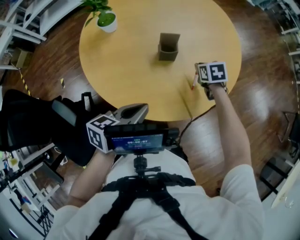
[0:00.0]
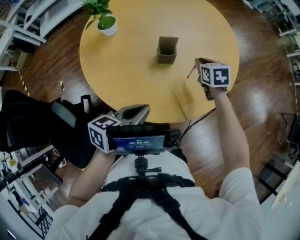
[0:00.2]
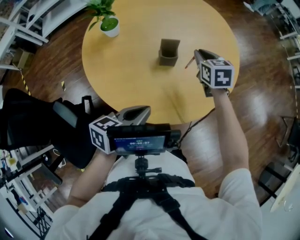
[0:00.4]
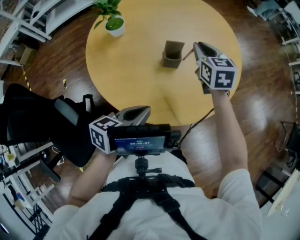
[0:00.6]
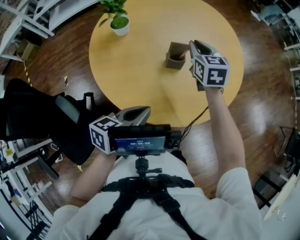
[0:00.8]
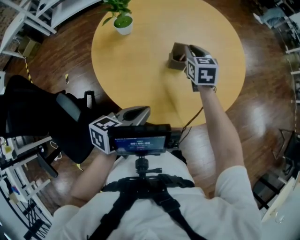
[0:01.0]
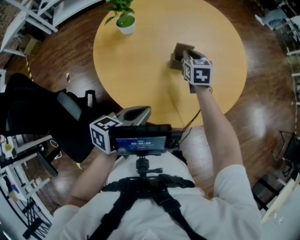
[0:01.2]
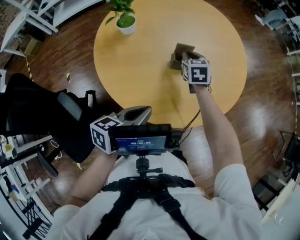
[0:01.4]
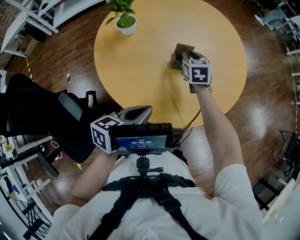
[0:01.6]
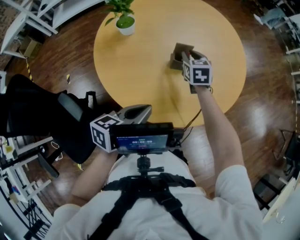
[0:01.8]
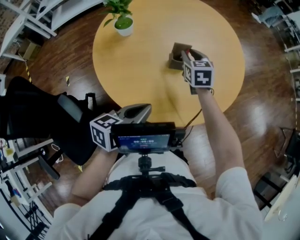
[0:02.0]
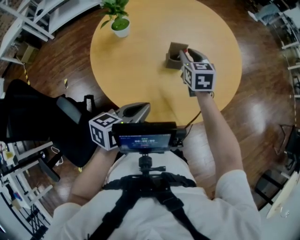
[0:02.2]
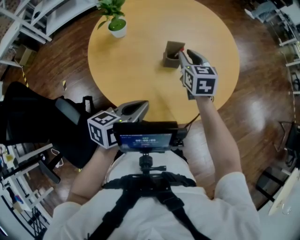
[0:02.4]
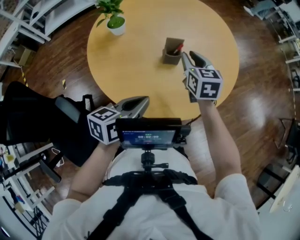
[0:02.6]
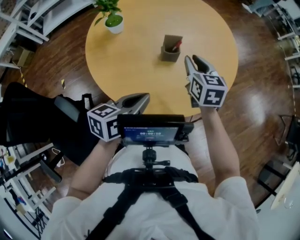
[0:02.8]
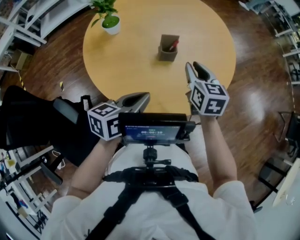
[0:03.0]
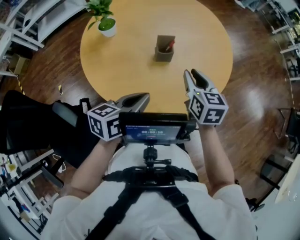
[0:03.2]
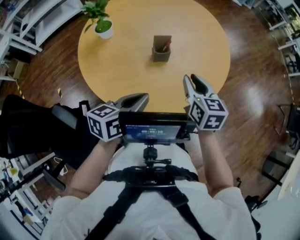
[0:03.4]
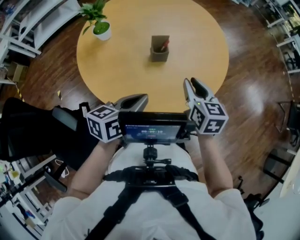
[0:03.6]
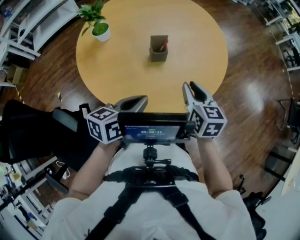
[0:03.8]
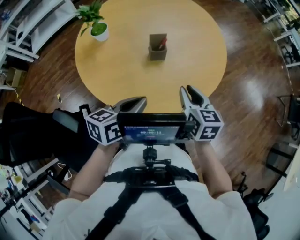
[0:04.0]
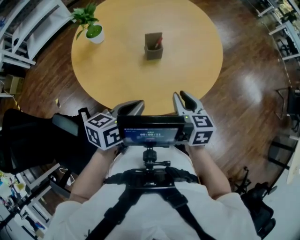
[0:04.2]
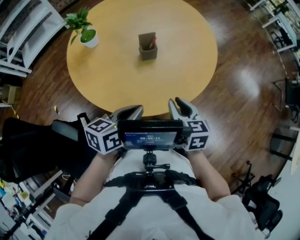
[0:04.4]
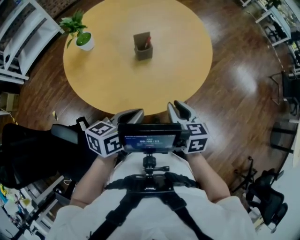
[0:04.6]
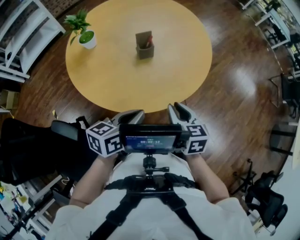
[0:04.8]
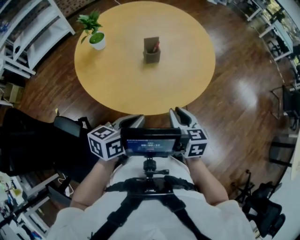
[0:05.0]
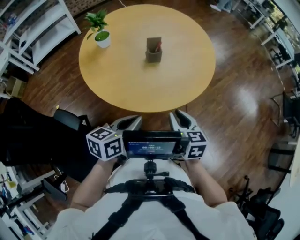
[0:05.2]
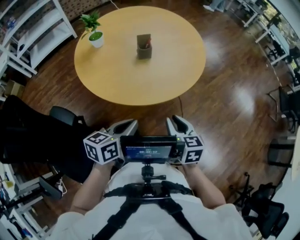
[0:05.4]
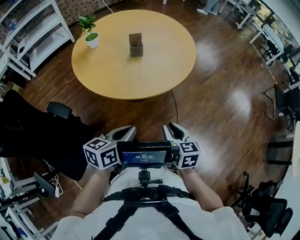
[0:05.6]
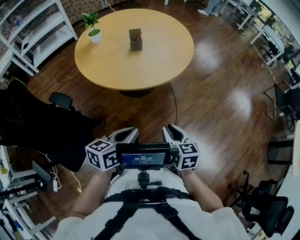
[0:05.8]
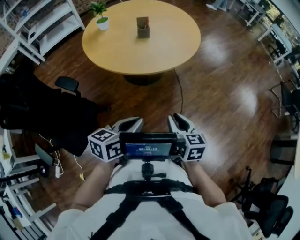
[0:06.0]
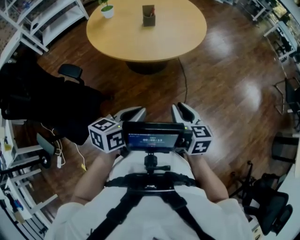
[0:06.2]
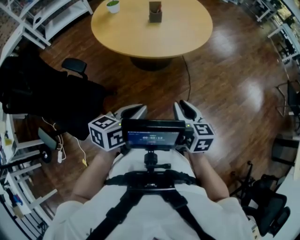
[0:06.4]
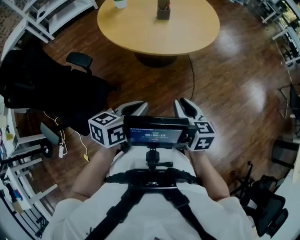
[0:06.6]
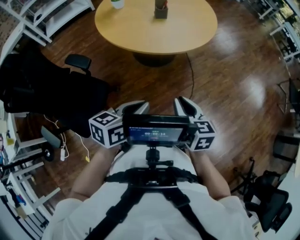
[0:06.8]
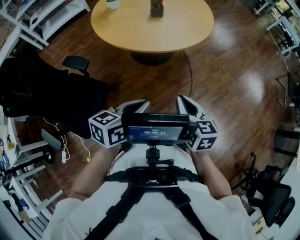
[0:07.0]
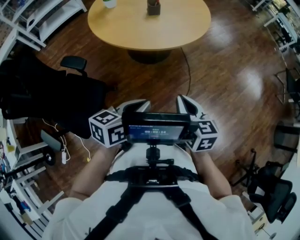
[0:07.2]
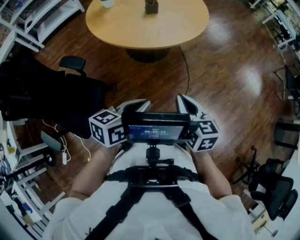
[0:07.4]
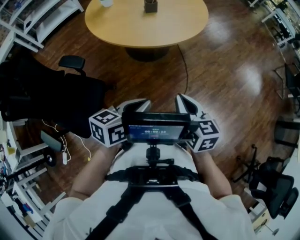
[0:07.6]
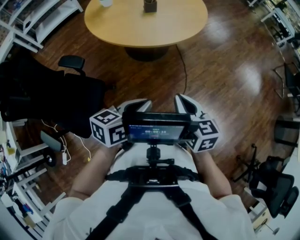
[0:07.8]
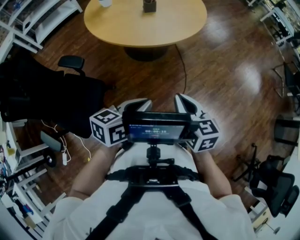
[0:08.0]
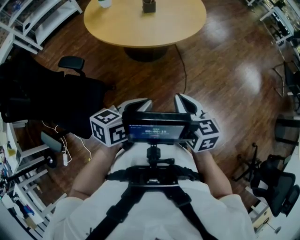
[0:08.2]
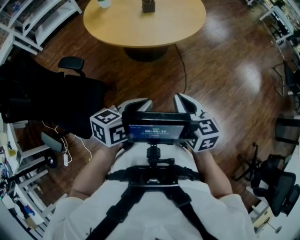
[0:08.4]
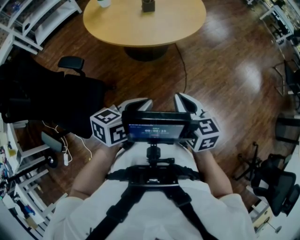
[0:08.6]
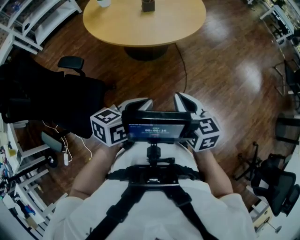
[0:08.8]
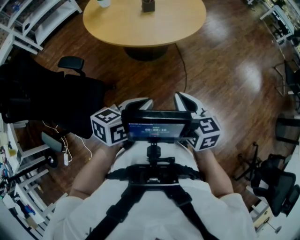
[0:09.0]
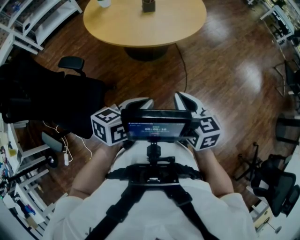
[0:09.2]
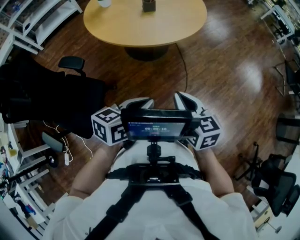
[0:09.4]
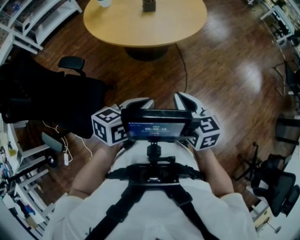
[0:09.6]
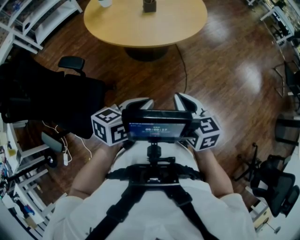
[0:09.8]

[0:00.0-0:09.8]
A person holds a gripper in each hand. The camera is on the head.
0:00.0 to 0:01.4: The right gripper travels to the left and upward by about 15 cm, and changes its angle by some 20 degrees.
0:01.4 to 0:02.8: The right gripper is displaced upward, backward and to the right by some 15 cm.
0:02.8 to 0:04.2: The right gripper travels backward by roughly 15 cm.
0:04.2 to 0:05.6: The grippers both shift backward and to the right by approximately 25 cm.
0:05.6 to 0:07.0: Both grippers travel together backward, approximately 15 cm. The right gripper closes its fingers.
0:07.0 to 0:08.4: The grippers stay close to where they were, moving slightly.
0:08.4 to 0:09.8: The two grippers keep their place.

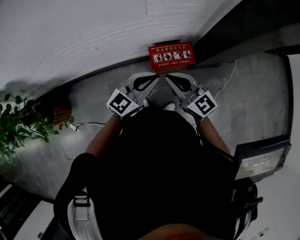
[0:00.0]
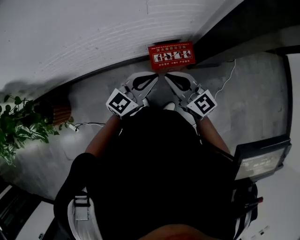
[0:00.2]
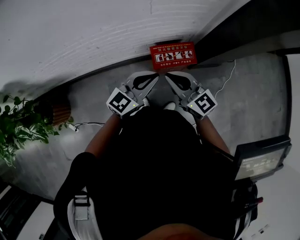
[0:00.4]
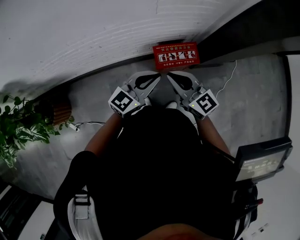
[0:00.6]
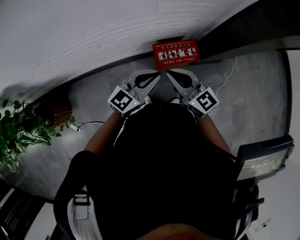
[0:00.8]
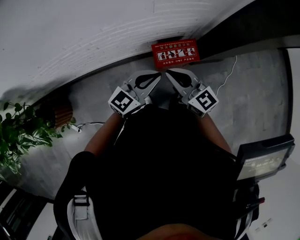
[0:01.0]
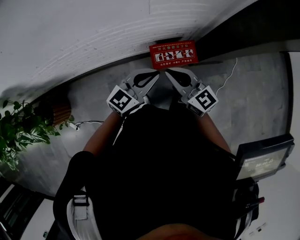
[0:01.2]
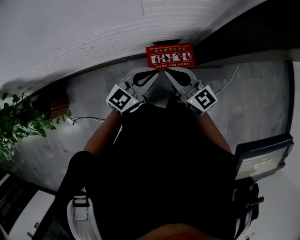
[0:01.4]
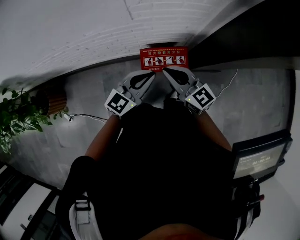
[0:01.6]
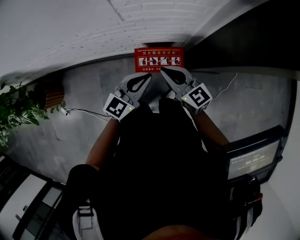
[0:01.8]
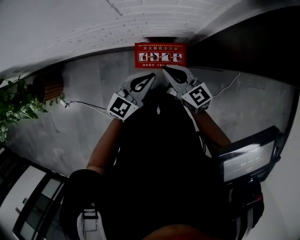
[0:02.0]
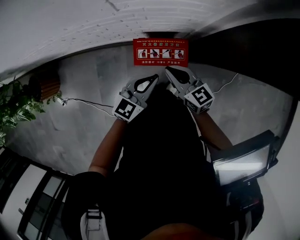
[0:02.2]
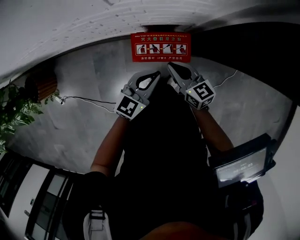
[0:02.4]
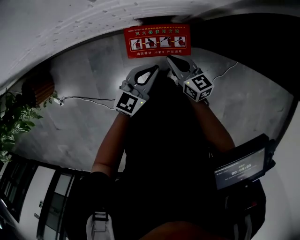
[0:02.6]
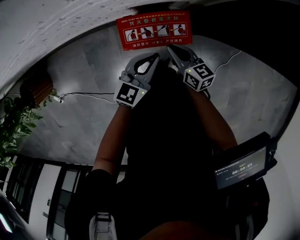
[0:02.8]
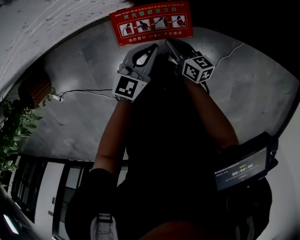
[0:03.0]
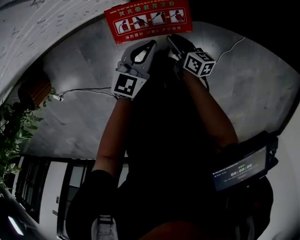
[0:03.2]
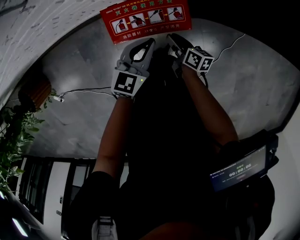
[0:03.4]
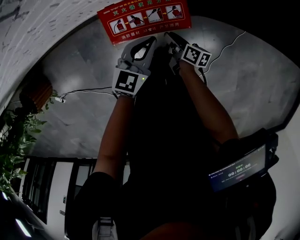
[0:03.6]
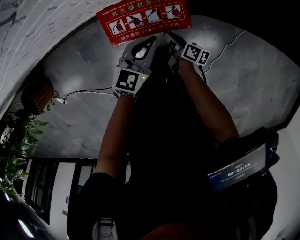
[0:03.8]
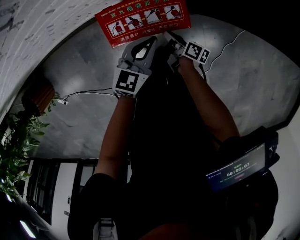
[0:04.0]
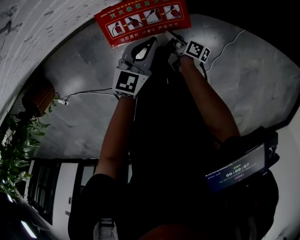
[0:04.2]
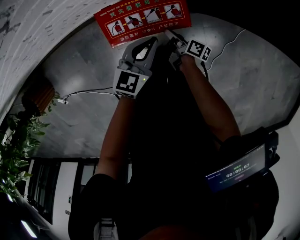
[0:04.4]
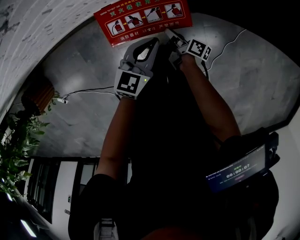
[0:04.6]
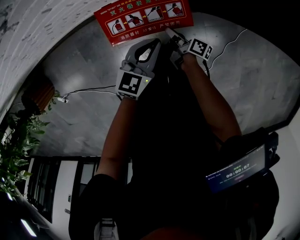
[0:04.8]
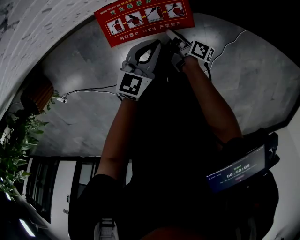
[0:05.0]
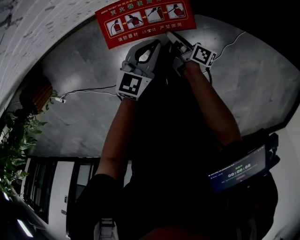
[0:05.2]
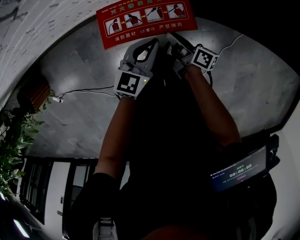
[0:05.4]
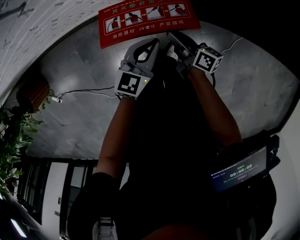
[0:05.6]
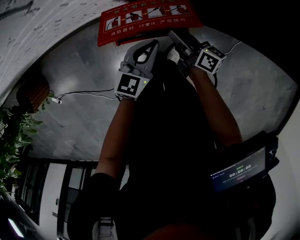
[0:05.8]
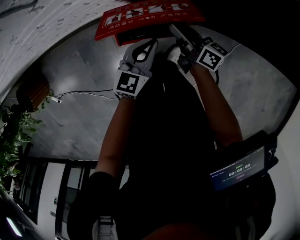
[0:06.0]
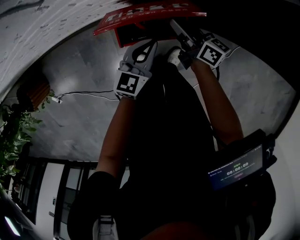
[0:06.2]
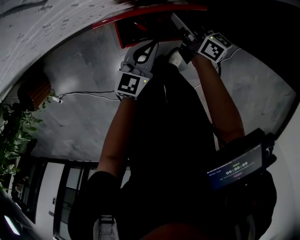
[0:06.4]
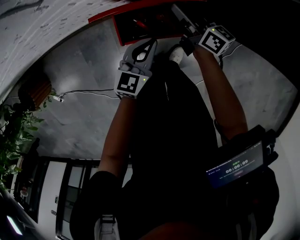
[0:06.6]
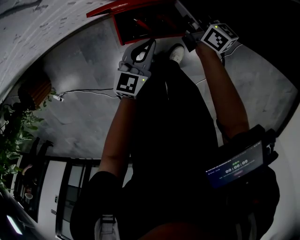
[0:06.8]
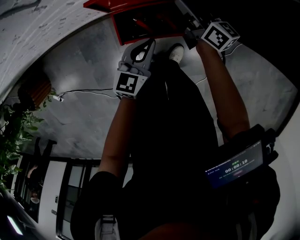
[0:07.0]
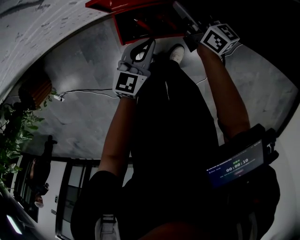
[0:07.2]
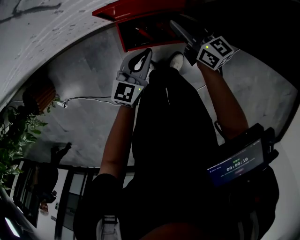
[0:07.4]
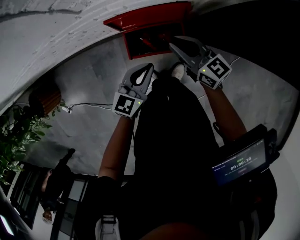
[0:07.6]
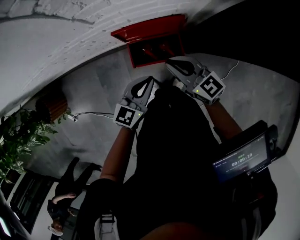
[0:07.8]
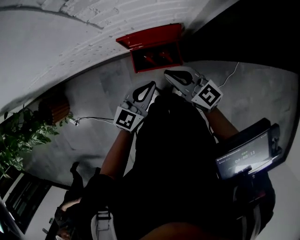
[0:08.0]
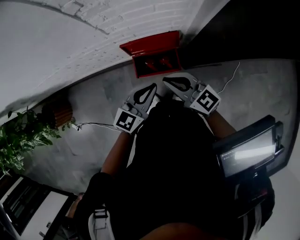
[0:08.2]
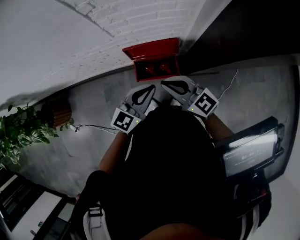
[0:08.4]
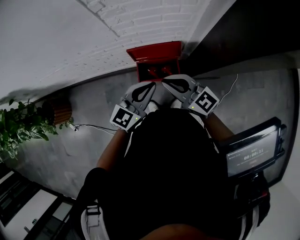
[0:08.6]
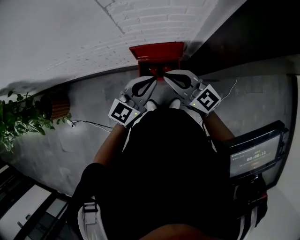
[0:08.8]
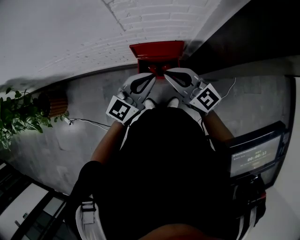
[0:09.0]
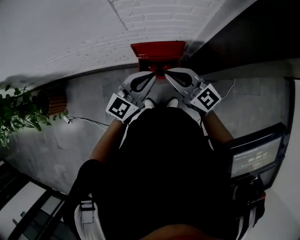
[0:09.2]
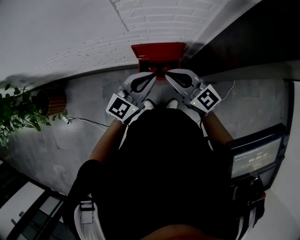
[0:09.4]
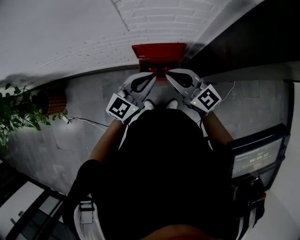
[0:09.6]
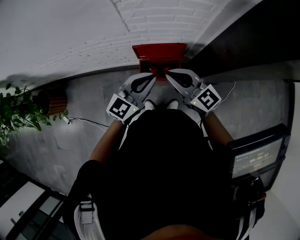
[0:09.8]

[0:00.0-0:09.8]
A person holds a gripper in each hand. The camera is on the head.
0:00.0 to 0:01.4: The two grippers go roughly 10 cm forward.
0:01.4 to 0:02.8: Both grippers move downward and to the right, approximately 35 cm. The right gripper rotates about 30 degrees.
0:02.8 to 0:04.2: The left gripper is displaced downward by some 10 cm; the right gripper is displaced downward by some 20 cm, twists roughly 50 degrees clockwise, seen from behind, and opens.
0:04.2 to 0:05.6: The right gripper travels upward by roughly 10 cm, and rotates roughly 30 degrees.
0:05.6 to 0:07.0: The right gripper travels forward and upward by some 15 cm, turns by about 20 degrees, and opens its fingers.
0:07.0 to 0:08.4: The left gripper heads upward, covering roughly 35 cm, while the right gripper shifts about 40 cm upward and backward, rotates approximately 50 degrees, and closes.
0:08.4 to 0:09.8: The left gripper moves upward, roughly 5 cm.

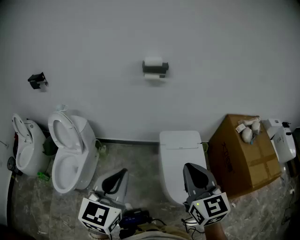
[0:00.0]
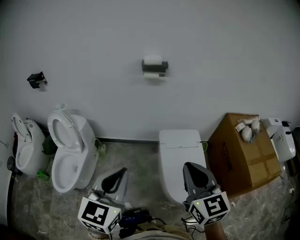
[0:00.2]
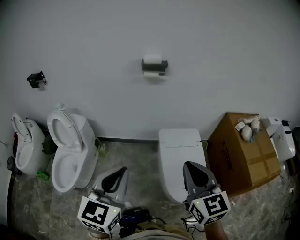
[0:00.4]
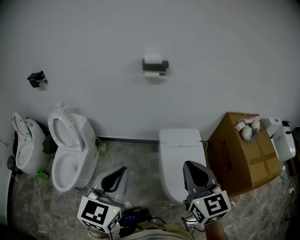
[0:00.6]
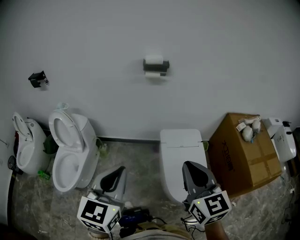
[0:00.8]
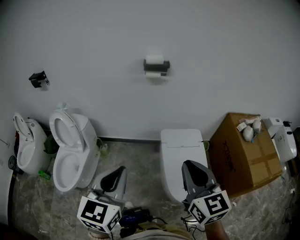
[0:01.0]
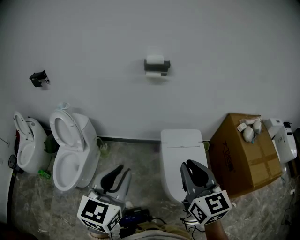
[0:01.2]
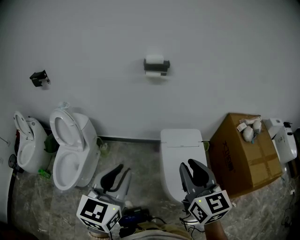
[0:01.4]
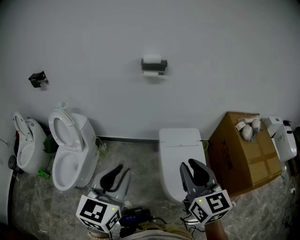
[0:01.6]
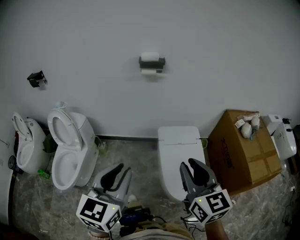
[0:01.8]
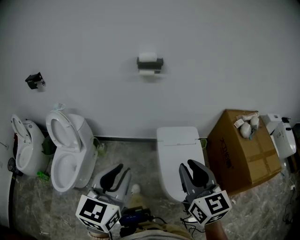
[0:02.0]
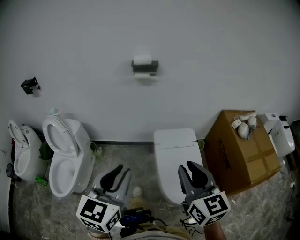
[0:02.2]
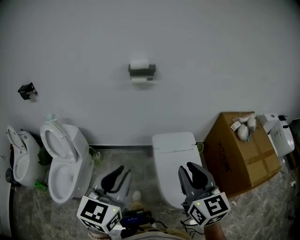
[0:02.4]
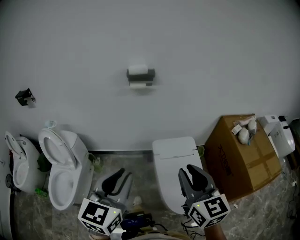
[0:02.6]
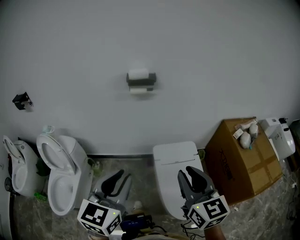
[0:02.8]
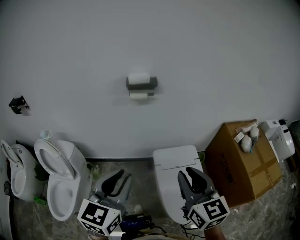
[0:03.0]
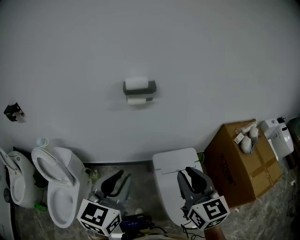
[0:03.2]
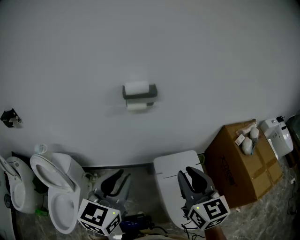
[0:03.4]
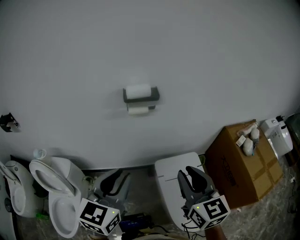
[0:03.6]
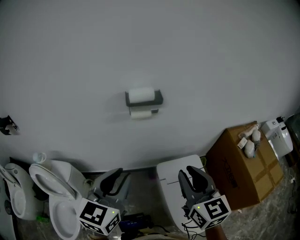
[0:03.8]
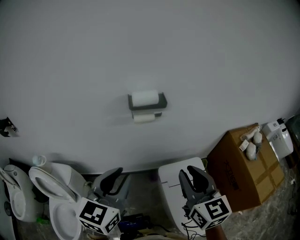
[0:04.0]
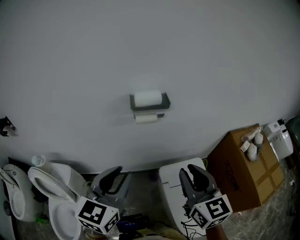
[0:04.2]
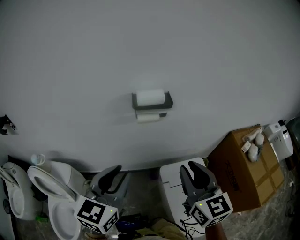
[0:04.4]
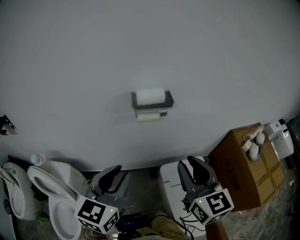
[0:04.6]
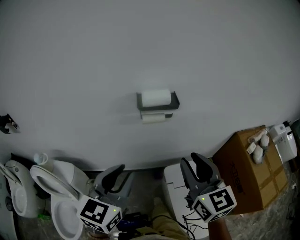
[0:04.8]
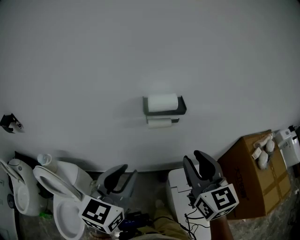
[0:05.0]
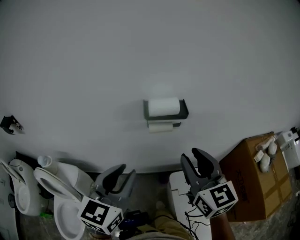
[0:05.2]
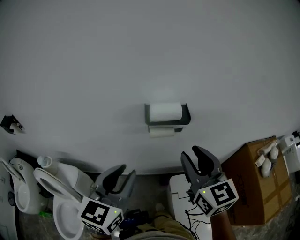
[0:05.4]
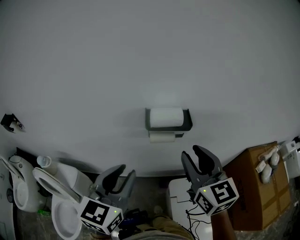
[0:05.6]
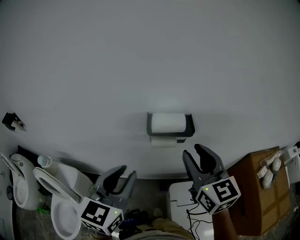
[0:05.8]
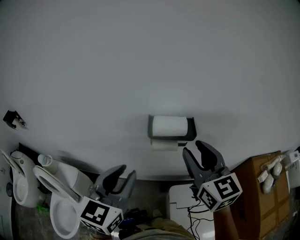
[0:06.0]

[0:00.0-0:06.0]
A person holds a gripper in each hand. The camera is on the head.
0:00.0 to 0:01.6: The grippers stay close to where they were, moving slightly.
0:01.6 to 0:03.0: Both grippers travel together forward, about 15 cm.
0:03.0 to 0:04.4: Both grippers travel together forward and to the left, some 20 cm.
0:04.4 to 0:06.0: The left gripper shifts about 15 cm forward. The right gripper travels forward by approximately 20 cm.
